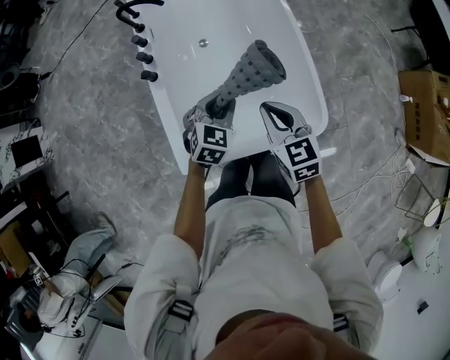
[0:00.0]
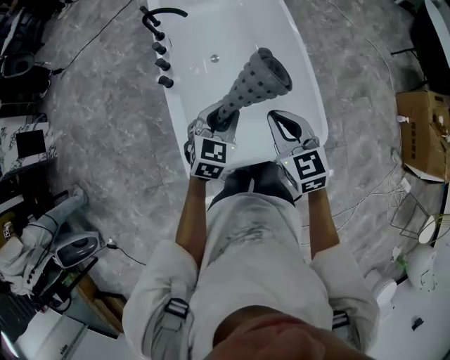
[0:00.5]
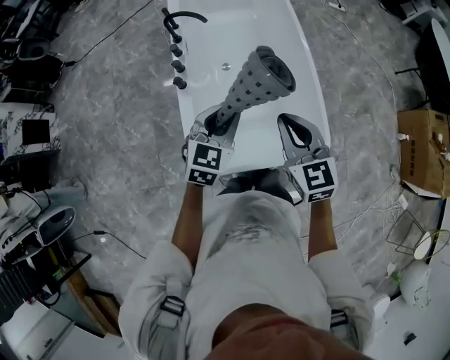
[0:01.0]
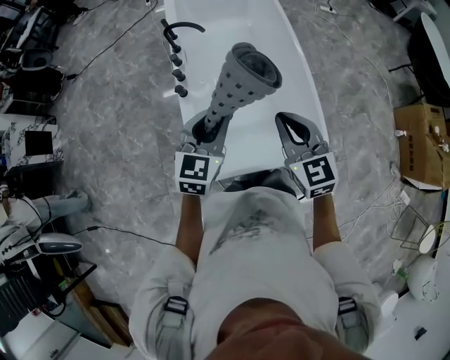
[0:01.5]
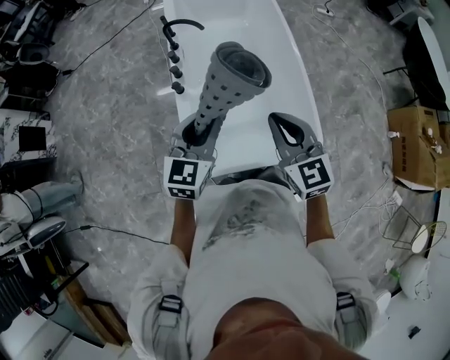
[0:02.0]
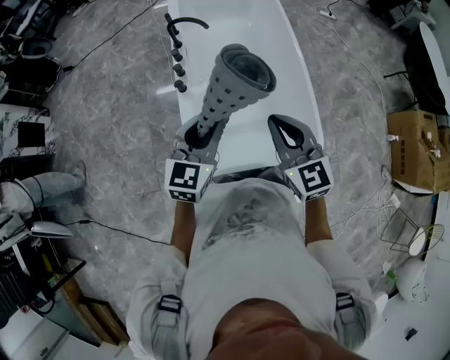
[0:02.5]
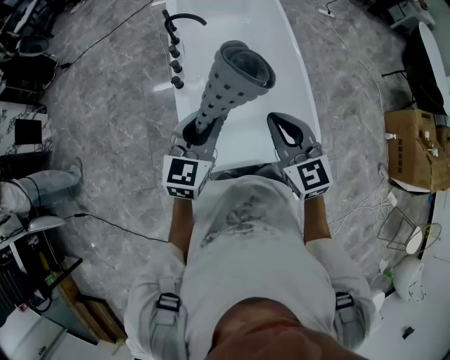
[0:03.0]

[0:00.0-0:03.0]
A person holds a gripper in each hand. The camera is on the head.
0:00.0 to 0:01.5: The right gripper goes approximately 20 cm upward, while the left gripper goes approximately 25 cm upward and to the left.
0:01.5 to 0:03.0: The grippers move only a little.

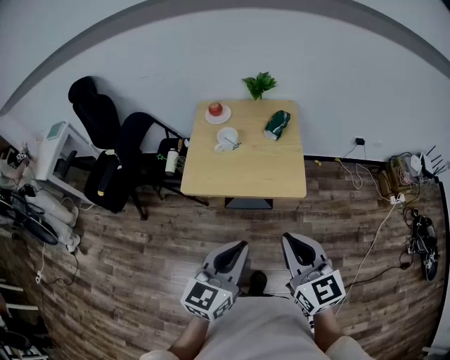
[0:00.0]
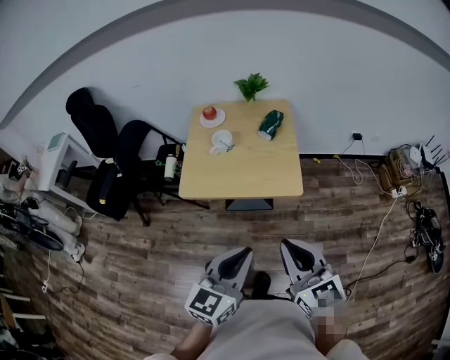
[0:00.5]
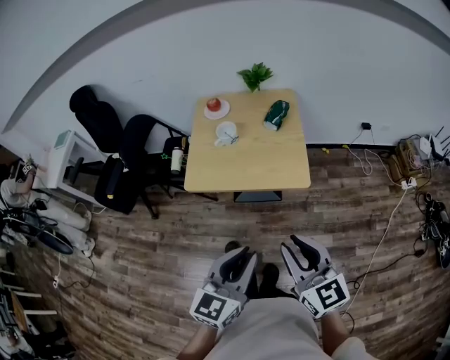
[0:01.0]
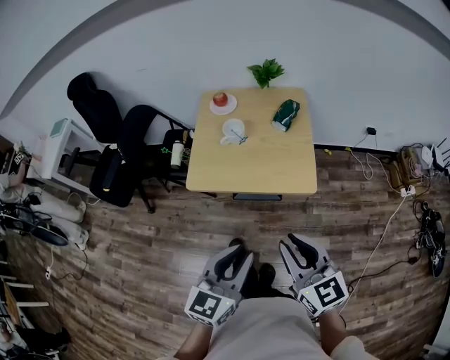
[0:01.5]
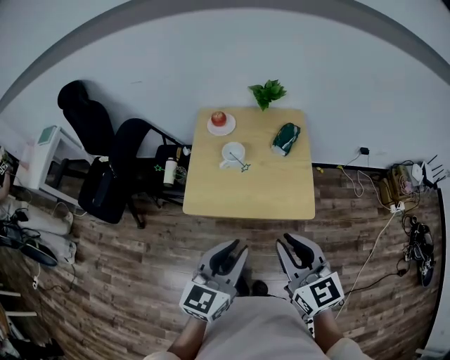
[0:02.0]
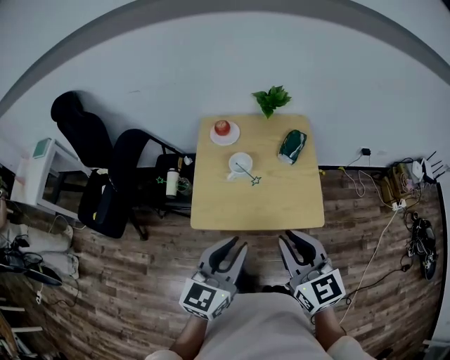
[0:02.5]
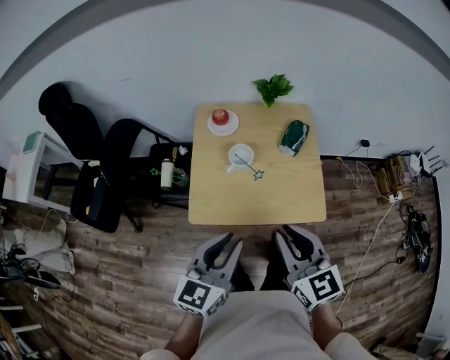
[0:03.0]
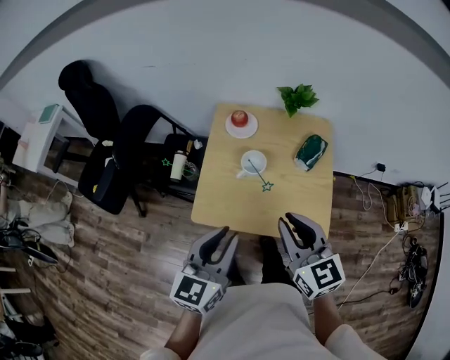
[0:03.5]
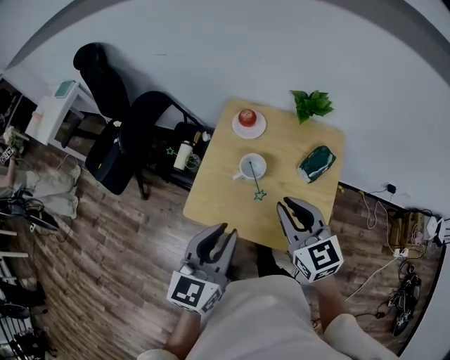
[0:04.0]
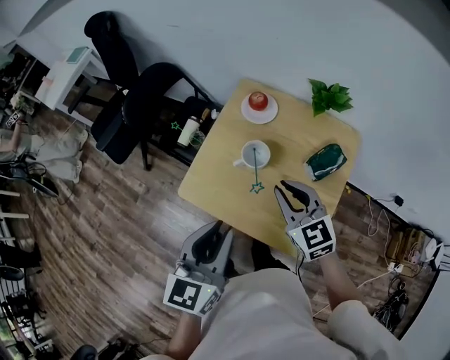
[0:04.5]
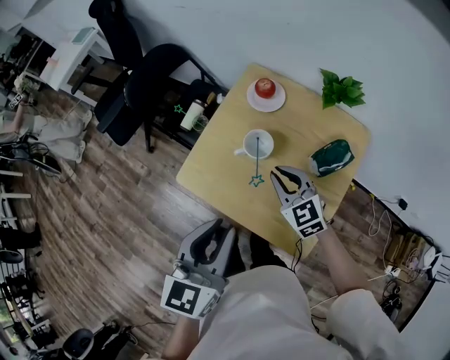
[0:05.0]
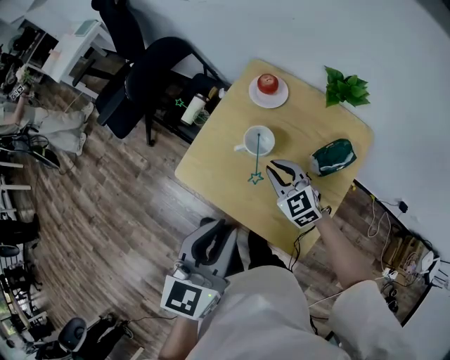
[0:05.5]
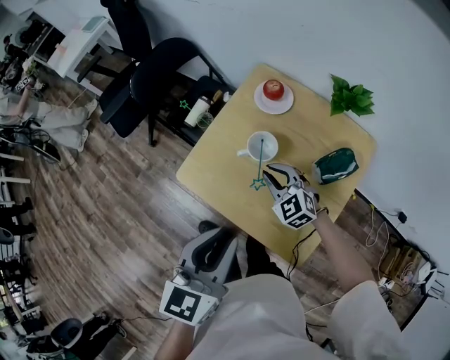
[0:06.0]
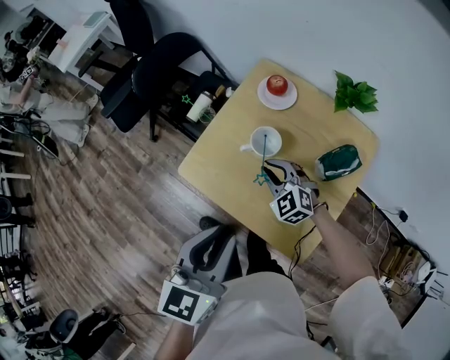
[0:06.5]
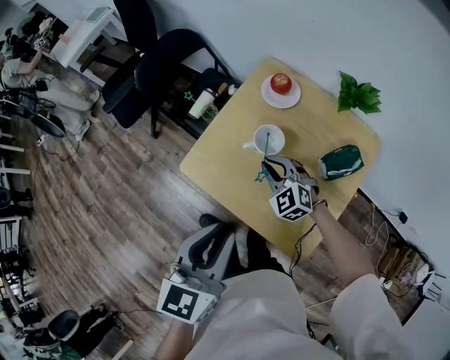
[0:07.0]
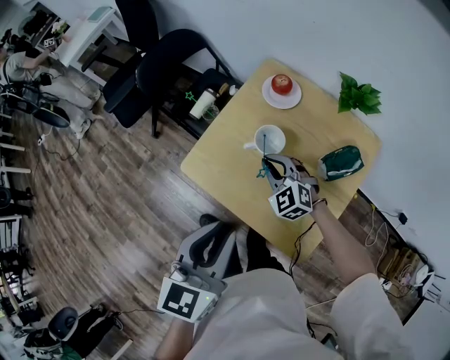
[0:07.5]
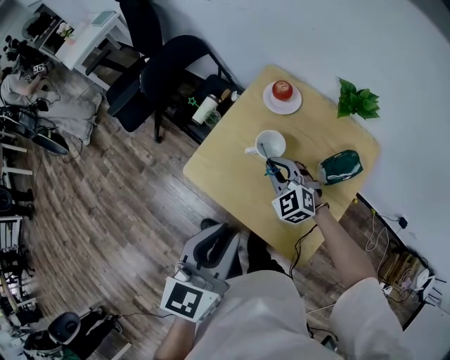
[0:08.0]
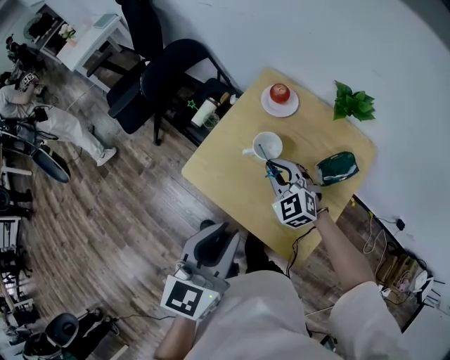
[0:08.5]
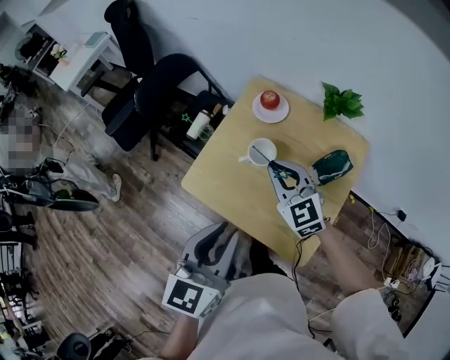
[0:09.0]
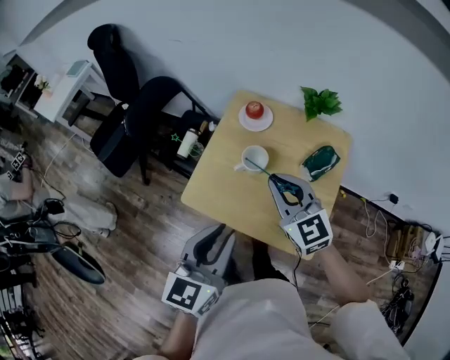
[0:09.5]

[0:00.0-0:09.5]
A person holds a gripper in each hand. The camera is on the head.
0:00.0 to 0:02.0: Both grippers travel together forward and to the left, about 15 cm.
0:02.0 to 0:04.0: The grippers both shift forward by about 20 cm. The left gripper rotates roughly 20 degrees.
0:04.0 to 0:05.5: The right gripper shifts roughly 20 cm downward and forward, and swivels roughly 30 degrees. The left gripper is displaced to the right by approximately 5 cm.
0:05.5 to 0:07.5: The right gripper changes place by approximately 5 cm.
0:07.5 to 0:09.5: The right gripper heads upward, covering approximately 20 cm, and swivels roughly 30 degrees.

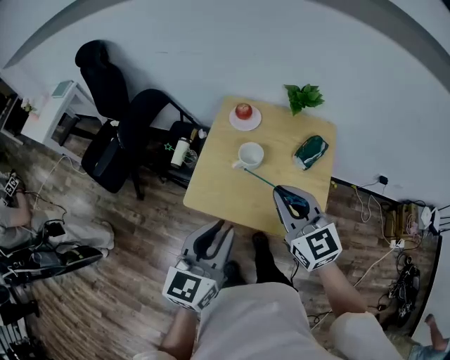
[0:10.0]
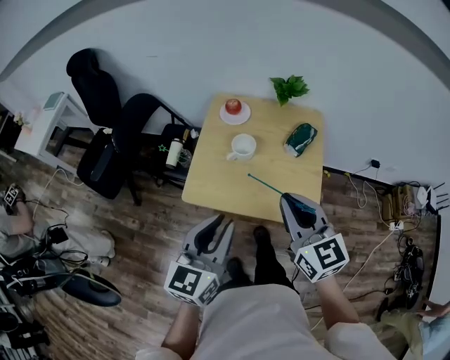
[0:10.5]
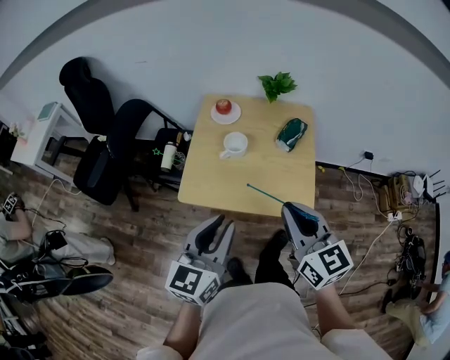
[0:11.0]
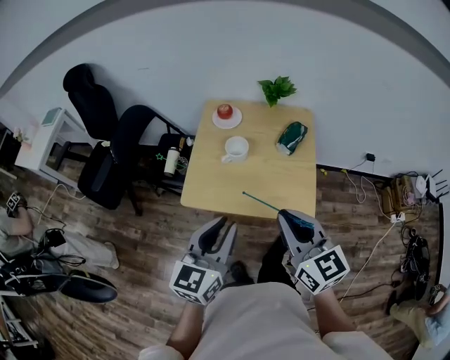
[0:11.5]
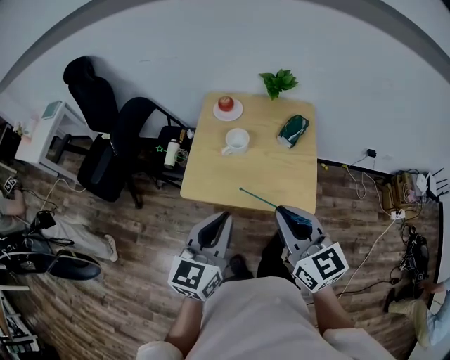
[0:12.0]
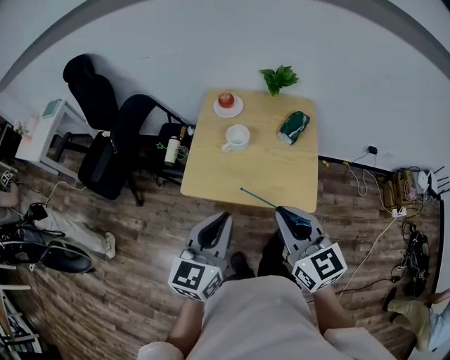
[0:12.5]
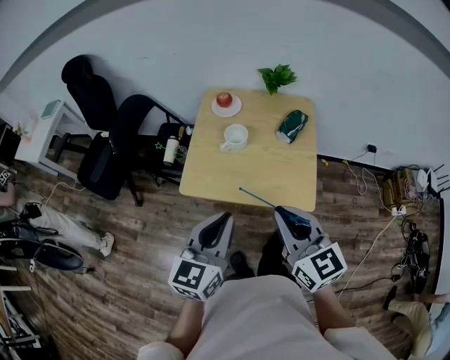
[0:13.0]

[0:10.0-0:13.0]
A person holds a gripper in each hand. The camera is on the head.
0:10.0 to 0:11.5: The right gripper shifts about 15 cm backward; the left gripper is displaced backward by about 5 cm.
0:11.5 to 0:13.0: The grippers move only a little.

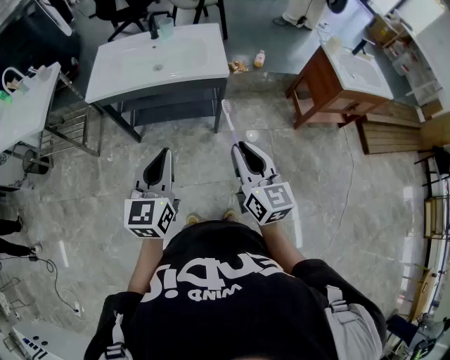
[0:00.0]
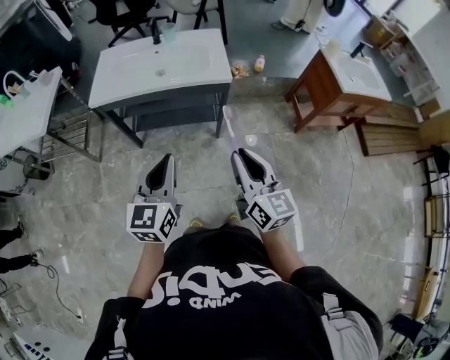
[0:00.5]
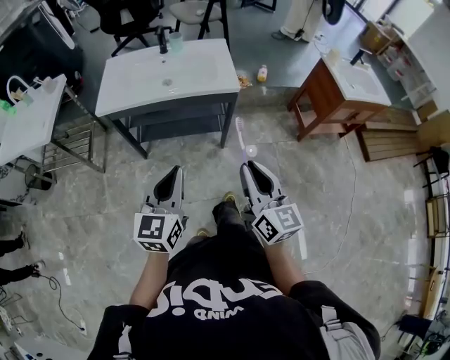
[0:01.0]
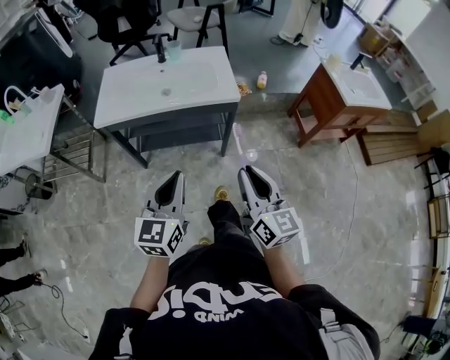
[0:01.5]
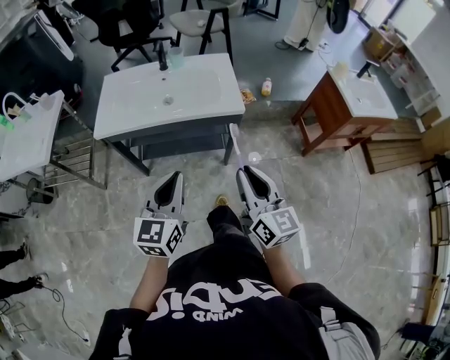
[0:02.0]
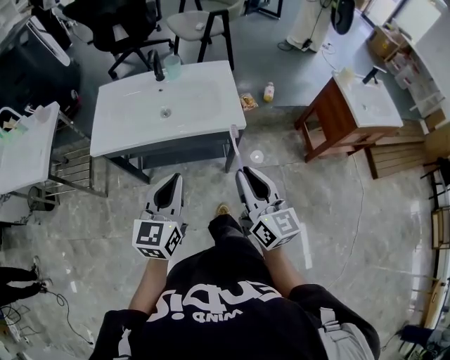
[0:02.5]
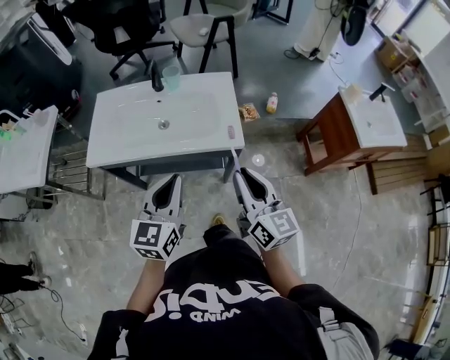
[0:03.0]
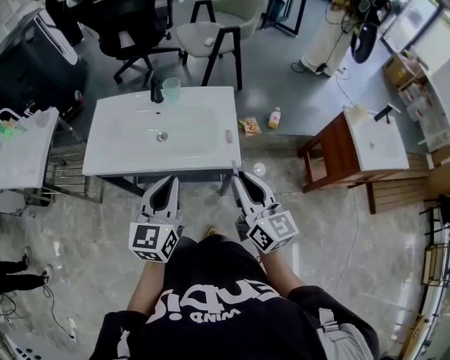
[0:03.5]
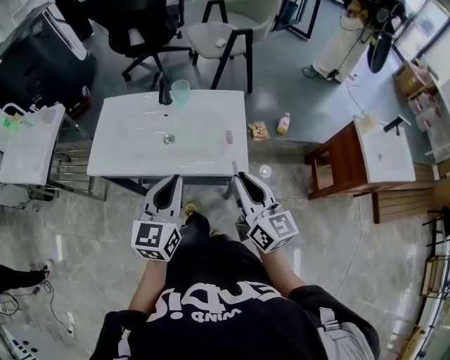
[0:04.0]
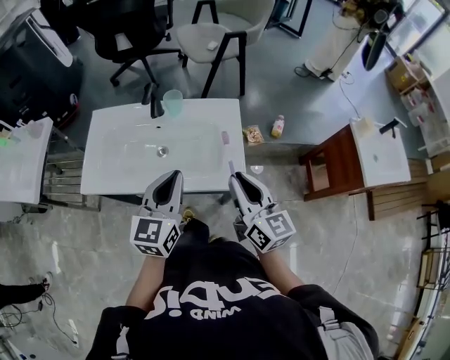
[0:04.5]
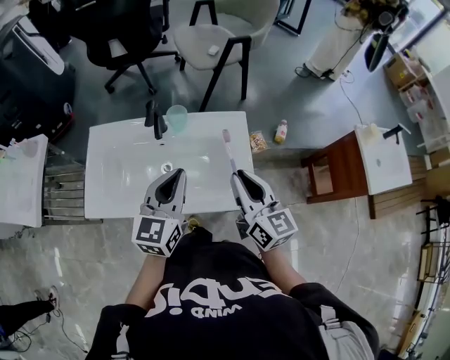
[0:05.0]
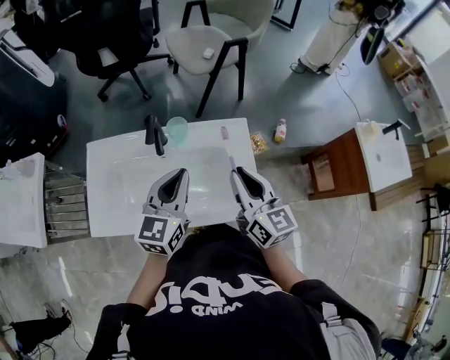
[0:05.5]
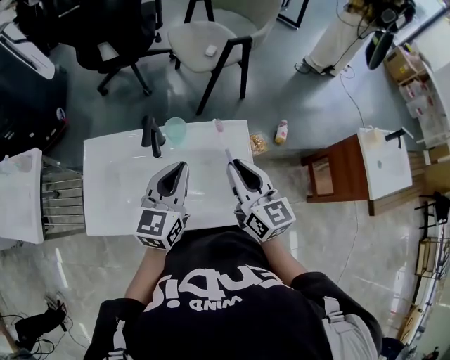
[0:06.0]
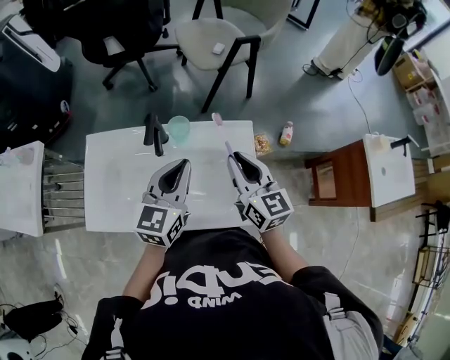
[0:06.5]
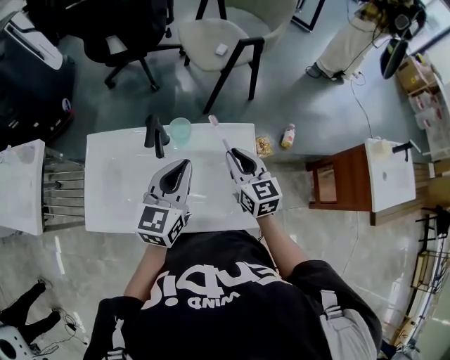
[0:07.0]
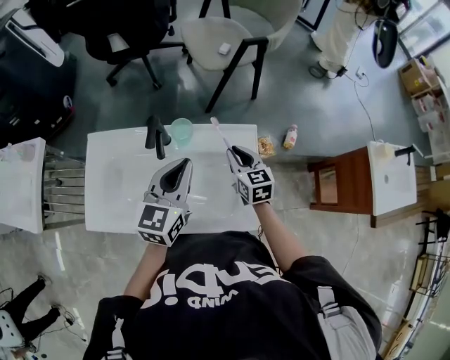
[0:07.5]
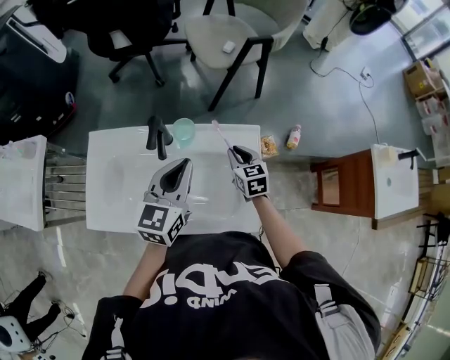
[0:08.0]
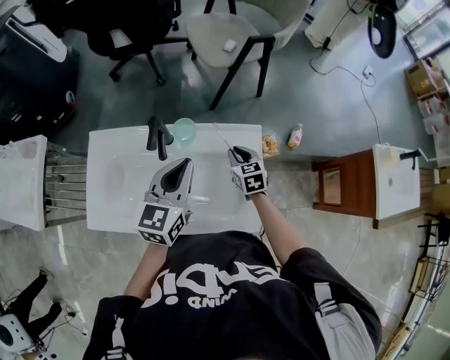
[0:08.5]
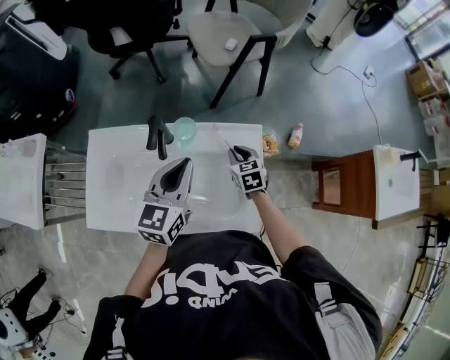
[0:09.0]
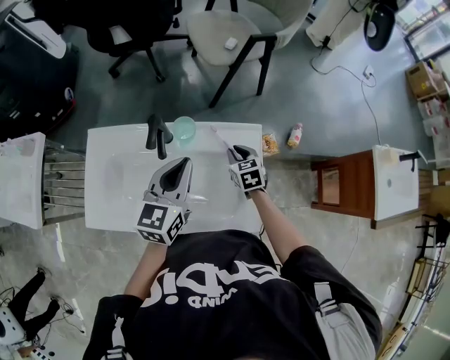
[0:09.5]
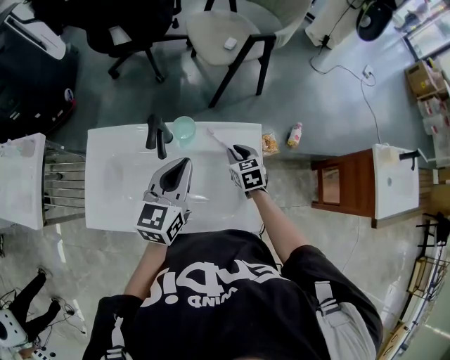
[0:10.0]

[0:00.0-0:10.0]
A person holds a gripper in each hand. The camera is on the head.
0:00.0 to 0:02.0: The left gripper shifts about 10 cm forward; the right gripper moves forward and to the left, some 10 cm.
0:02.0 to 0:04.0: Both grippers travel together forward, some 25 cm.
0:04.0 to 0:06.0: The grippers both shift forward by roughly 25 cm.
0:06.0 to 0:08.0: The right gripper goes about 25 cm downward and forward, and changes its angle by about 30 degrees.
0:08.0 to 0:10.0: The grippers make only small movements.

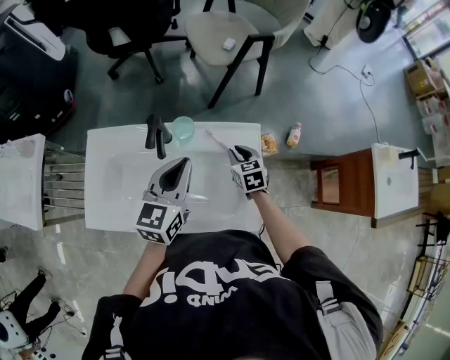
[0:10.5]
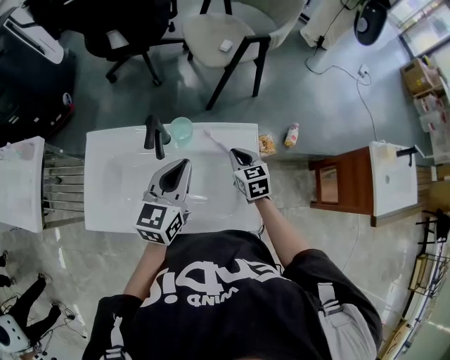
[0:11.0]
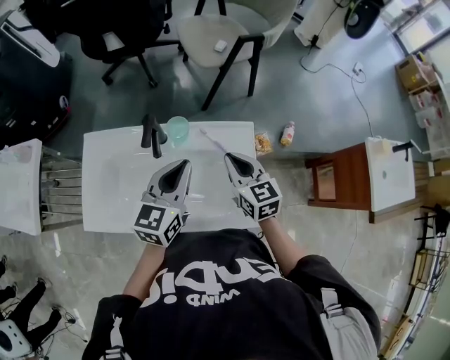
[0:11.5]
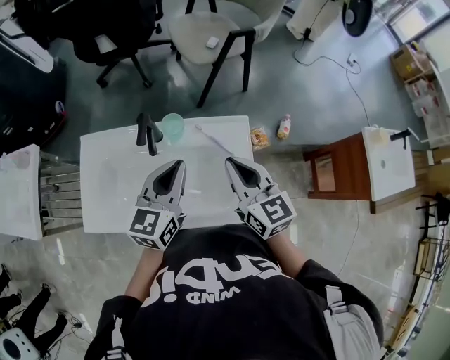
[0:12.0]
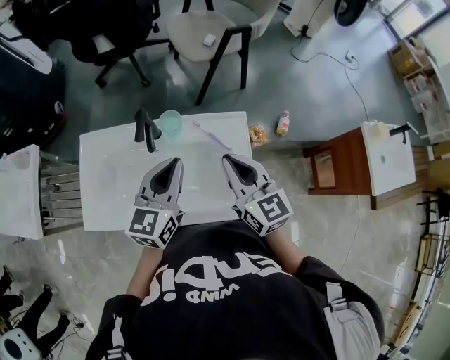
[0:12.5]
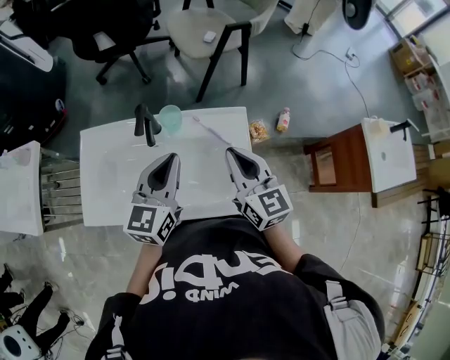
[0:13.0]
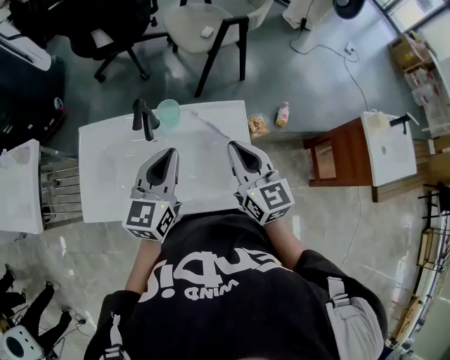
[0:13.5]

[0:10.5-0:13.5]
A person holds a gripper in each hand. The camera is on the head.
0:10.5 to 0:12.0: The right gripper moves upward and backward, some 25 cm, and angles its fingers upward, by about 30 degrees.
0:12.0 to 0:13.5: The grippers stay close to where they were, moving slightly.
